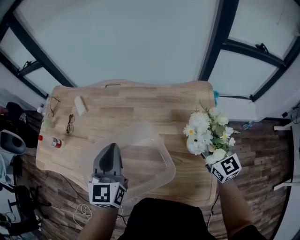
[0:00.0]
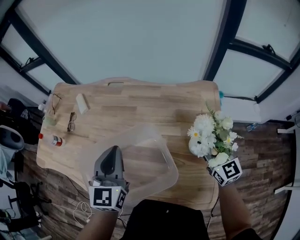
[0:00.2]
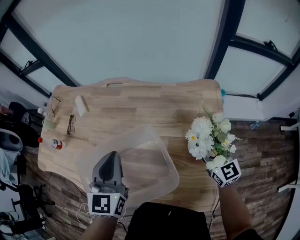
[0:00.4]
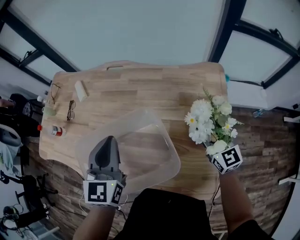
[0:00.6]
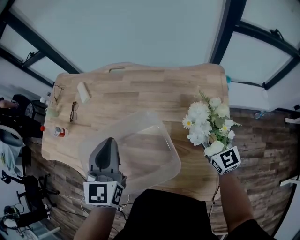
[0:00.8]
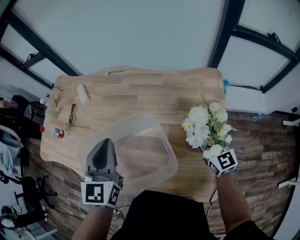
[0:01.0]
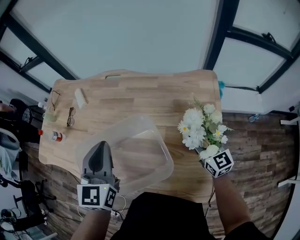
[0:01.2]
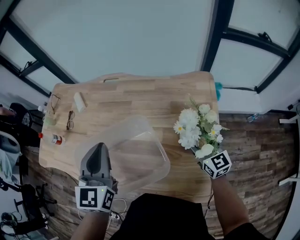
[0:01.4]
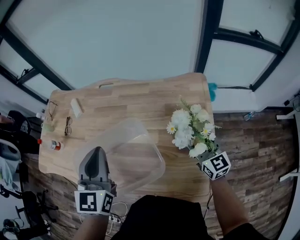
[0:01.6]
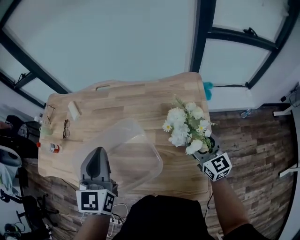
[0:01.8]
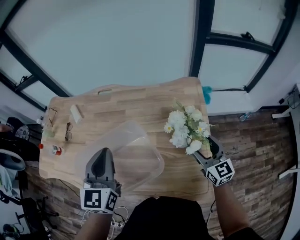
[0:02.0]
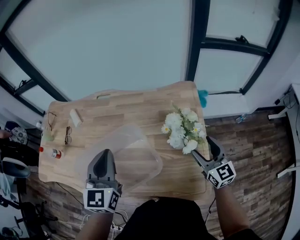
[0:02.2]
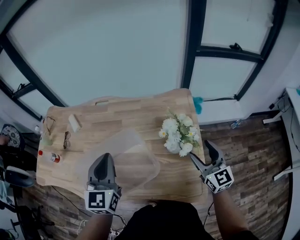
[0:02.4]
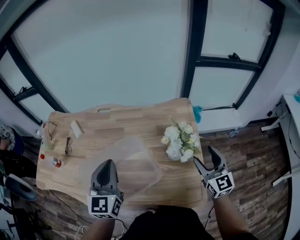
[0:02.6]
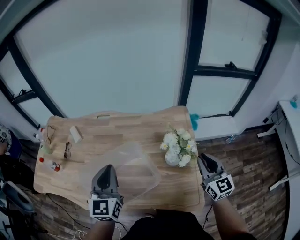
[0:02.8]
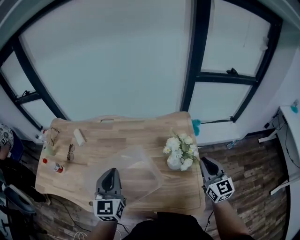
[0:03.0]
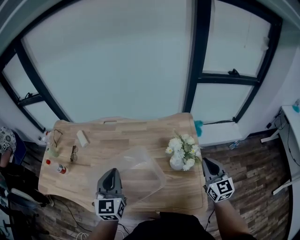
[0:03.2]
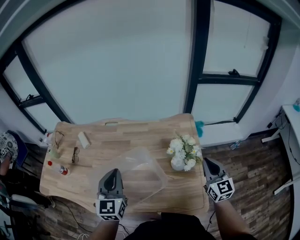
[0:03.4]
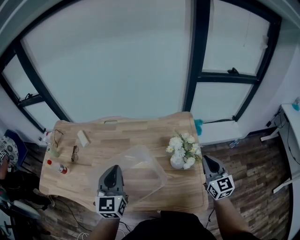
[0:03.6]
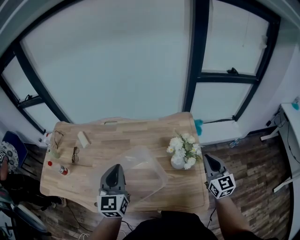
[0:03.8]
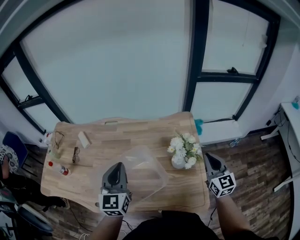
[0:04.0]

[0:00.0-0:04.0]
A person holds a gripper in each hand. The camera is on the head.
0:00.0 to 0:01.4: The right gripper goes about 5 cm downward.
0:01.4 to 0:02.6: The right gripper travels upward, backward and to the right by approximately 15 cm.
0:02.6 to 0:04.0: The right gripper closes its fingers.

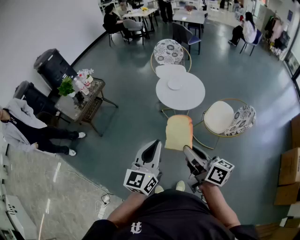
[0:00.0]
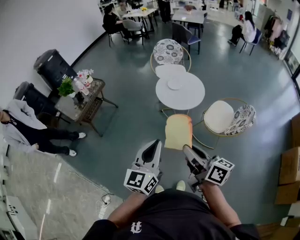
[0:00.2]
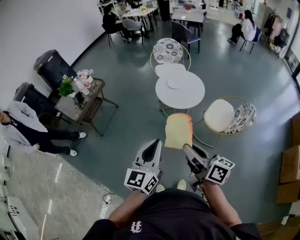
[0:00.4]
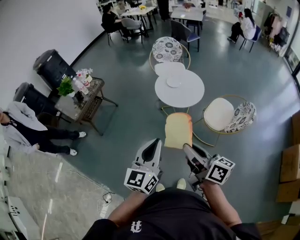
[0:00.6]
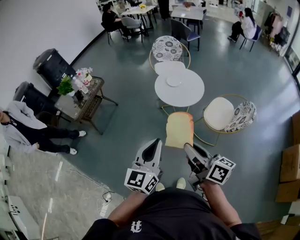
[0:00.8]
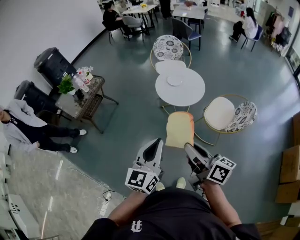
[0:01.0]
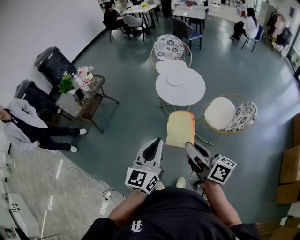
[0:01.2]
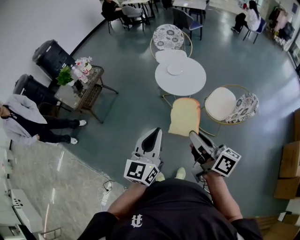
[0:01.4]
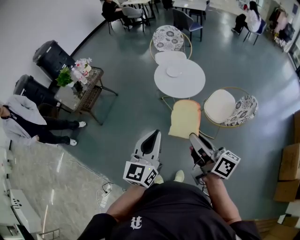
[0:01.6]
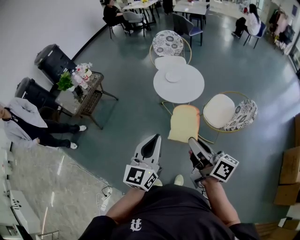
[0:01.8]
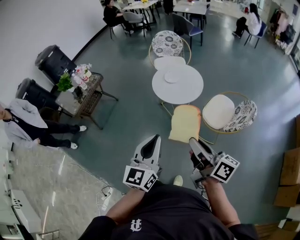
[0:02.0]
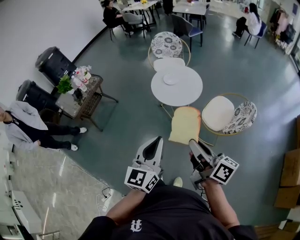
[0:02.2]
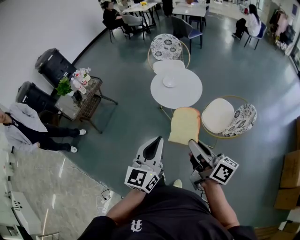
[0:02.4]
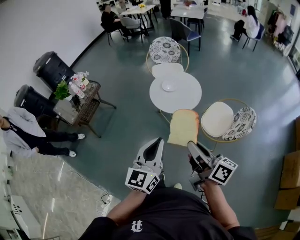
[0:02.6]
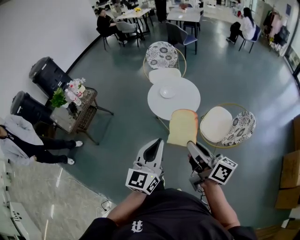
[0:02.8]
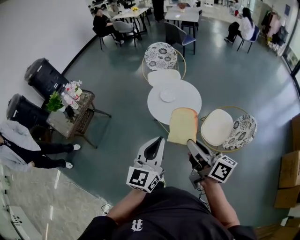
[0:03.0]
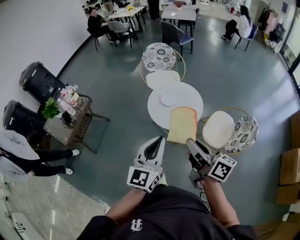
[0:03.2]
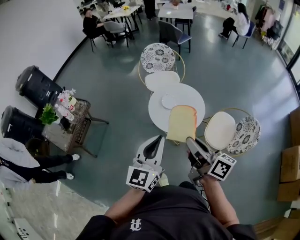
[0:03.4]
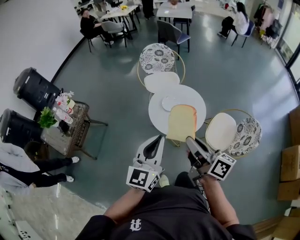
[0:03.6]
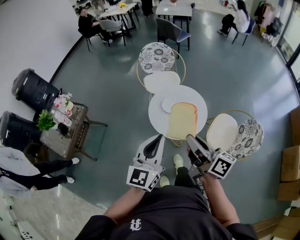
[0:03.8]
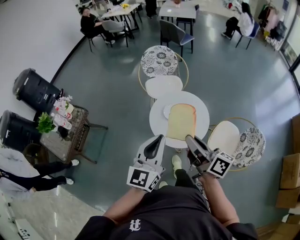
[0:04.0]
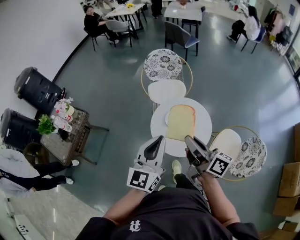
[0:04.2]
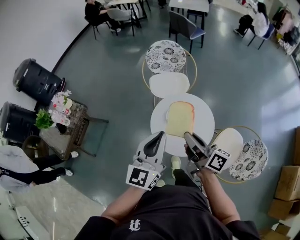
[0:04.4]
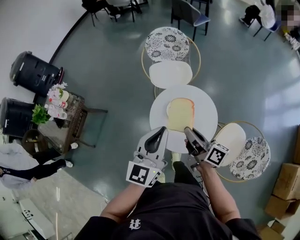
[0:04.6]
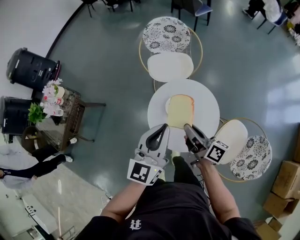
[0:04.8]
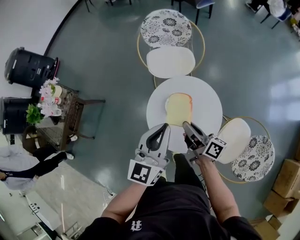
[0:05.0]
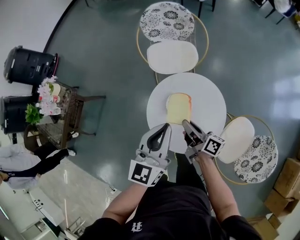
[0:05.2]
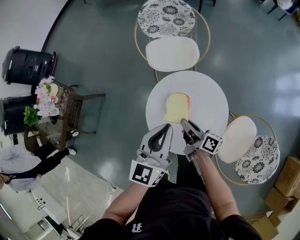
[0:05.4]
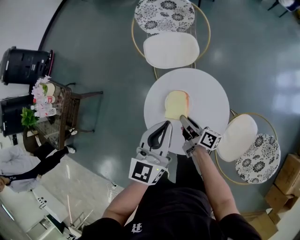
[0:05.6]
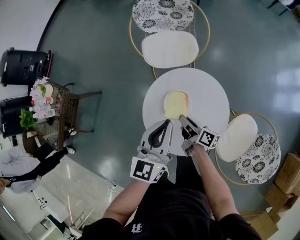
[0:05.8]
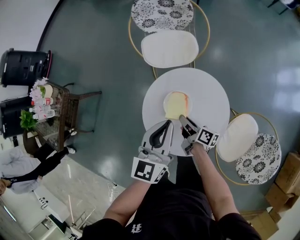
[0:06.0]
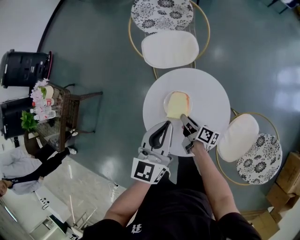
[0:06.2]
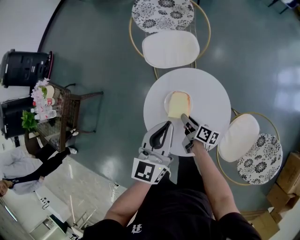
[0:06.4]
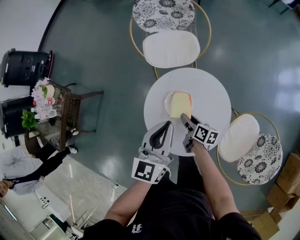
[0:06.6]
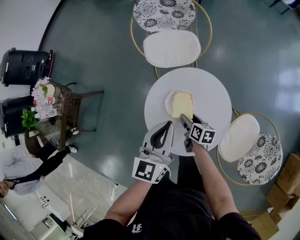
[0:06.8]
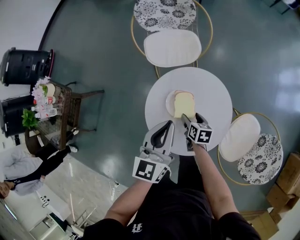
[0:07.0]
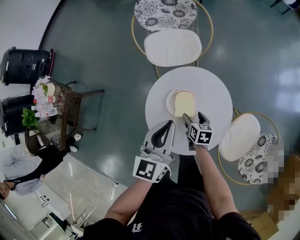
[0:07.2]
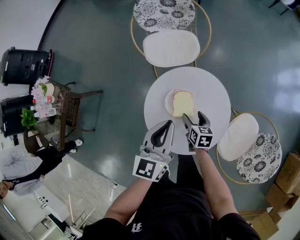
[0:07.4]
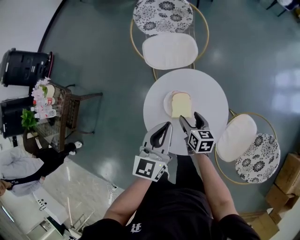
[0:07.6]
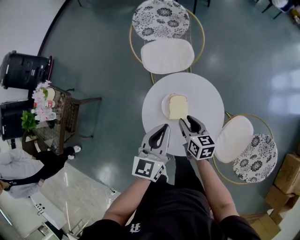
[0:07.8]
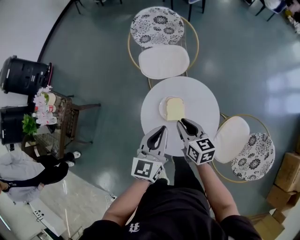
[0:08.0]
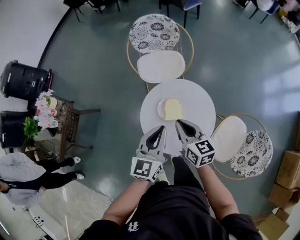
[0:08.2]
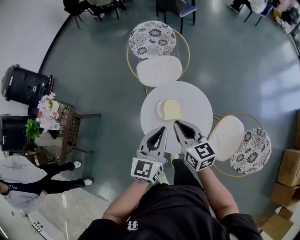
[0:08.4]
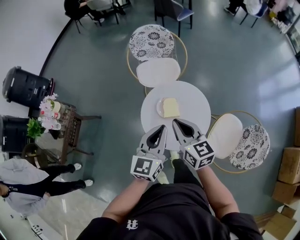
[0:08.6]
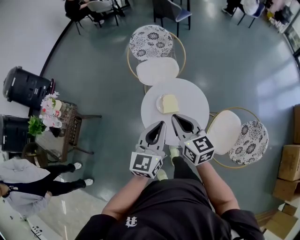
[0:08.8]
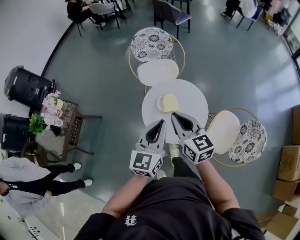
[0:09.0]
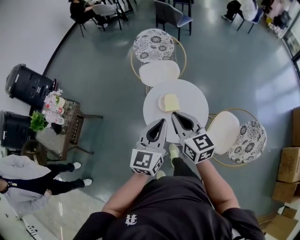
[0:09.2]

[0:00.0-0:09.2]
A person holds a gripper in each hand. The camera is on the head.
0:00.0 to 0:01.6: The right gripper is displaced to the right by approximately 5 cm.
0:01.6 to 0:03.0: Both grippers move forward, about 15 cm.
0:03.0 to 0:04.6: The grippers both shift forward by some 40 cm.
0:04.6 to 0:06.2: The left gripper is displaced downward and forward by some 20 cm. The right gripper heads downward, covering about 30 cm, and changes its angle by about 30 degrees.
0:06.2 to 0:07.6: The right gripper rotates around the line of its fingers by about 40 degrees, counterclockwise from behind, and opens its fingers.
0:07.6 to 0:09.2: The right gripper is displaced upward and backward by roughly 35 cm, swivels about 30 degrees, and closes up; the left gripper travels upward and backward by approximately 25 cm.

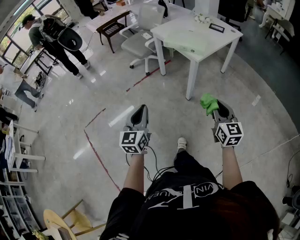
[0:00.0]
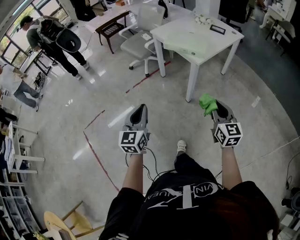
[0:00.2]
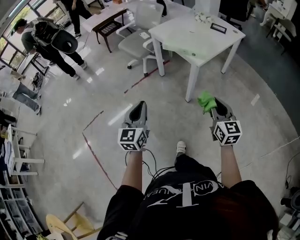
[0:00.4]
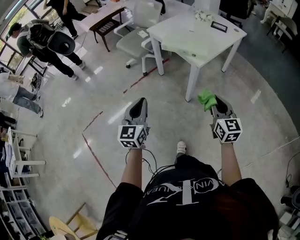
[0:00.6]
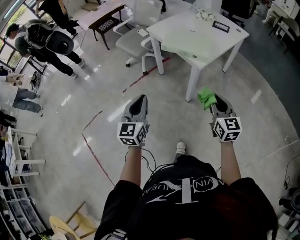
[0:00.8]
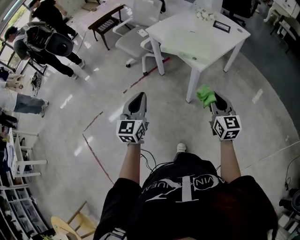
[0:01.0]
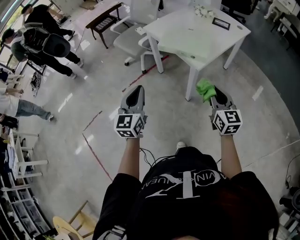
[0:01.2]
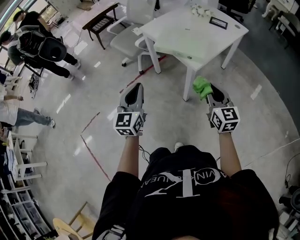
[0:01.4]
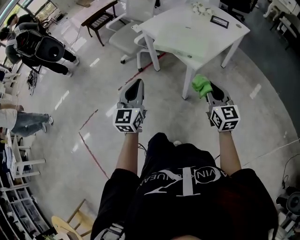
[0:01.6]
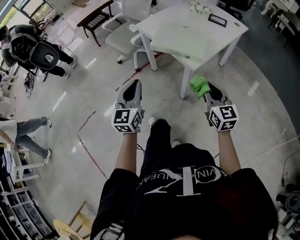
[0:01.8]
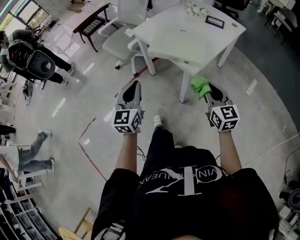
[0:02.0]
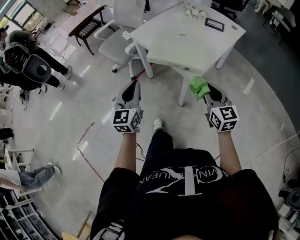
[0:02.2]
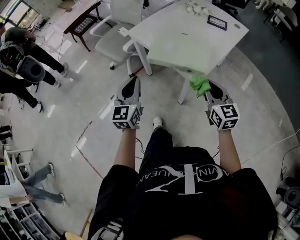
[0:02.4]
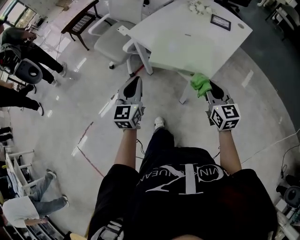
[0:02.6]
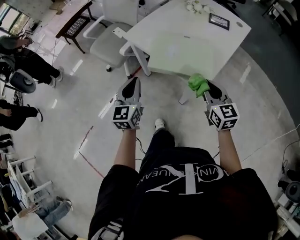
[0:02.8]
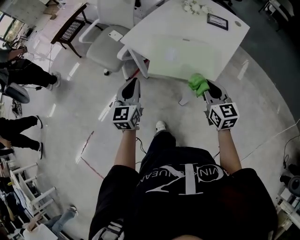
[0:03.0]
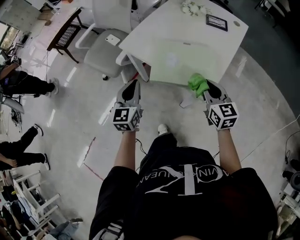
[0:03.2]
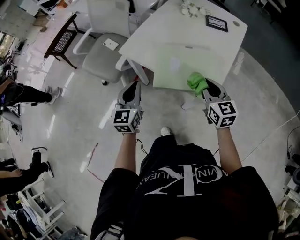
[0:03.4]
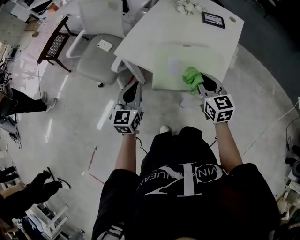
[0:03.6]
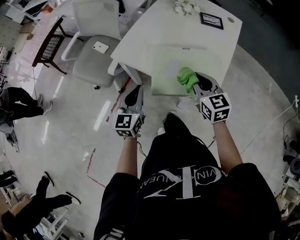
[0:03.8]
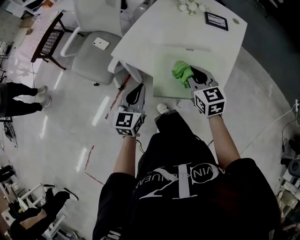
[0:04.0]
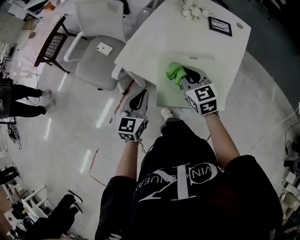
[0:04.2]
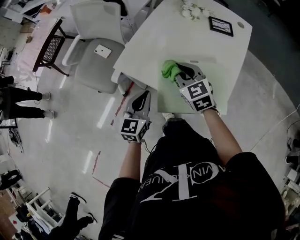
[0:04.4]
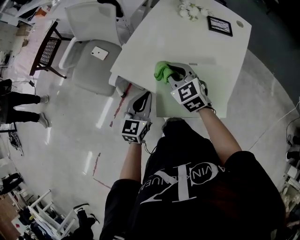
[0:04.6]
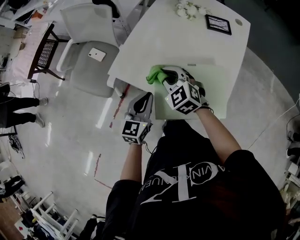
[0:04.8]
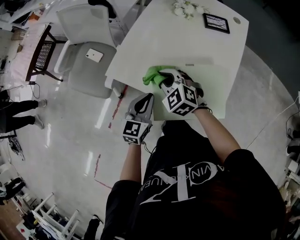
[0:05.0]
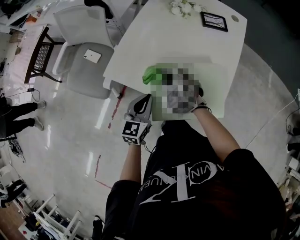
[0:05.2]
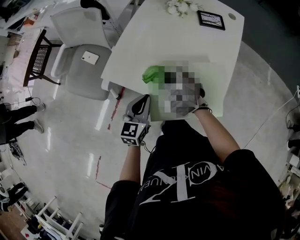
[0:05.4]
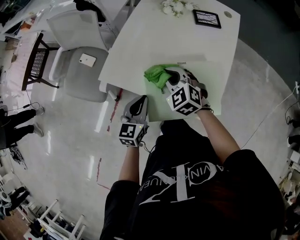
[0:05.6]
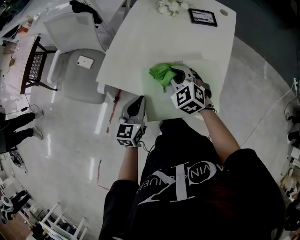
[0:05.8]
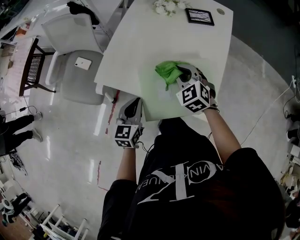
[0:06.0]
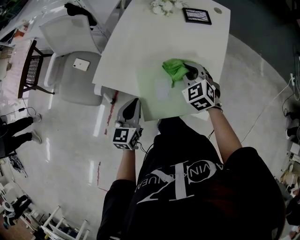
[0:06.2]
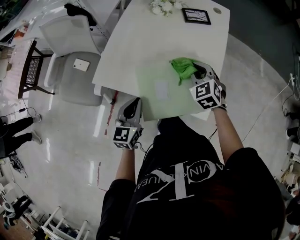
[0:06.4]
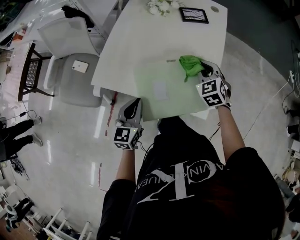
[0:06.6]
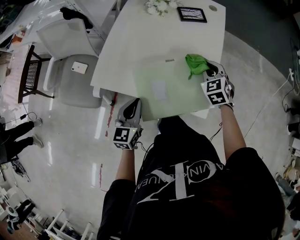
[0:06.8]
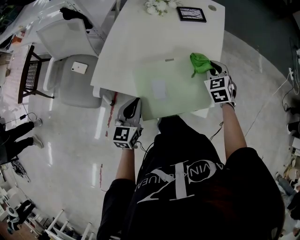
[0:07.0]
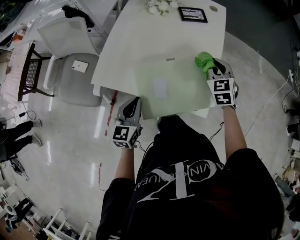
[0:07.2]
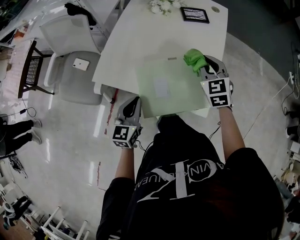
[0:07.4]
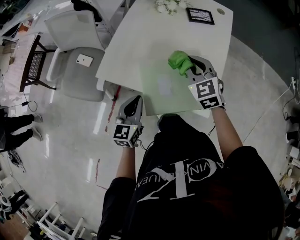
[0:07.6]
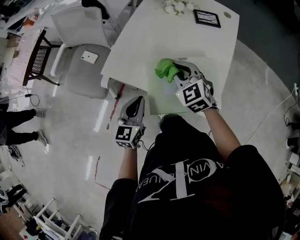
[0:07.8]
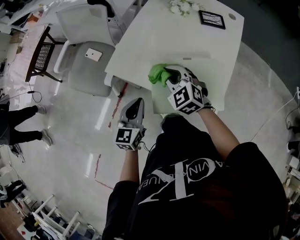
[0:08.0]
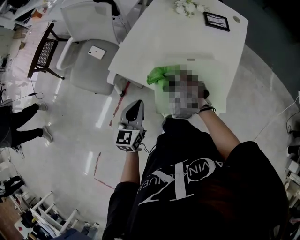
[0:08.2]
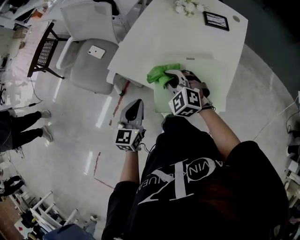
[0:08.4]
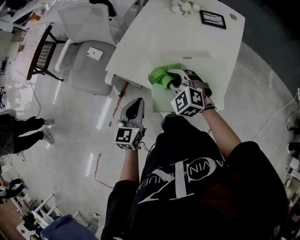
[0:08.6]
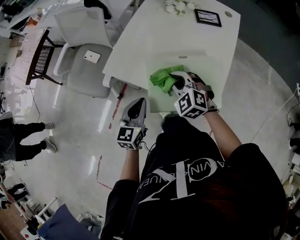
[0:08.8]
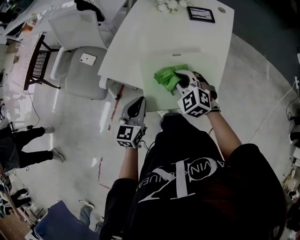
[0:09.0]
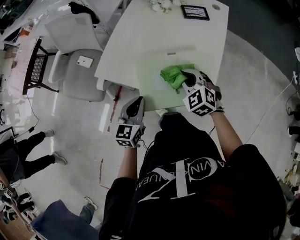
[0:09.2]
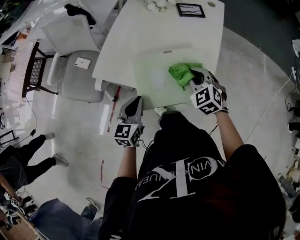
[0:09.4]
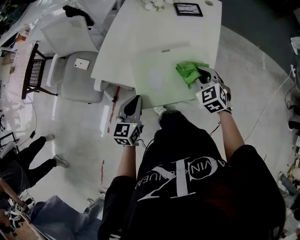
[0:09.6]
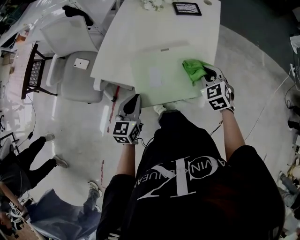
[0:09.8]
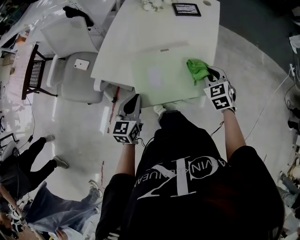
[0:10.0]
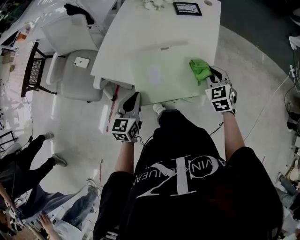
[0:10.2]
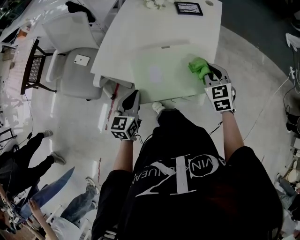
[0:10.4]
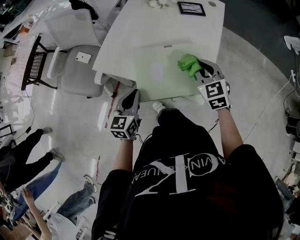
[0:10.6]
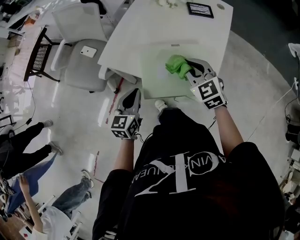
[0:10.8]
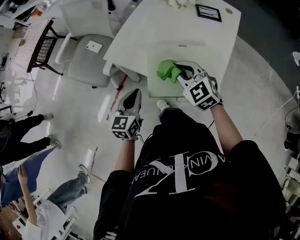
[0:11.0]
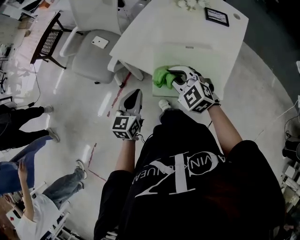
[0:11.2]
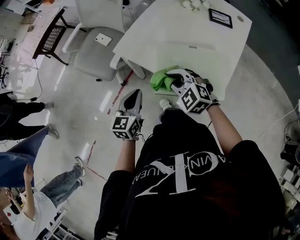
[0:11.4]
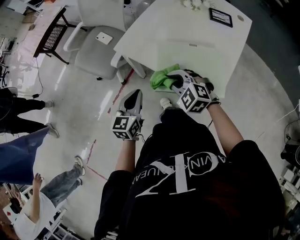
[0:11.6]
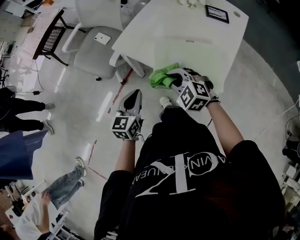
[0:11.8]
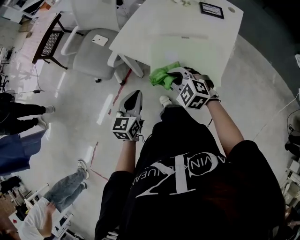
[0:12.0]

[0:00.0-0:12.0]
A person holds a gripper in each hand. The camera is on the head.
0:00.0 to 0:01.6: The two grippers go approximately 25 cm forward.
0:01.6 to 0:03.0: Both grippers move forward, approximately 25 cm.
0:03.0 to 0:04.4: The left gripper heads forward and downward, covering about 15 cm, while the right gripper is displaced forward and to the left by about 25 cm.
0:04.4 to 0:06.0: The right gripper is displaced to the right by about 10 cm, and changes its angle by roughly 20 degrees.
0:06.0 to 0:07.6: The right gripper shifts approximately 5 cm upward, and goes to the right and returns, roughly 15 cm each way.
0:07.6 to 0:09.0: The right gripper goes roughly 10 cm downward, backward and to the left, and swivels approximately 20 degrees.
0:09.0 to 0:10.4: The right gripper goes roughly 15 cm to the right, and changes its angle by about 30 degrees.
0:10.4 to 0:12.0: The right gripper changes place by some 25 cm, and turns by approximately 50 degrees. The left gripper moves roughly 10 cm.
